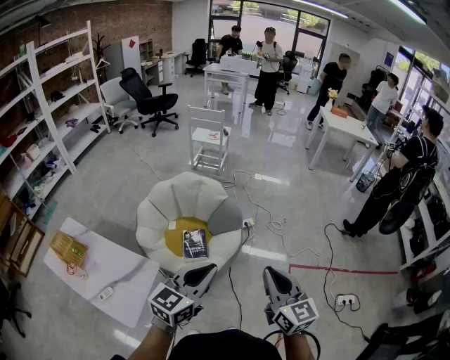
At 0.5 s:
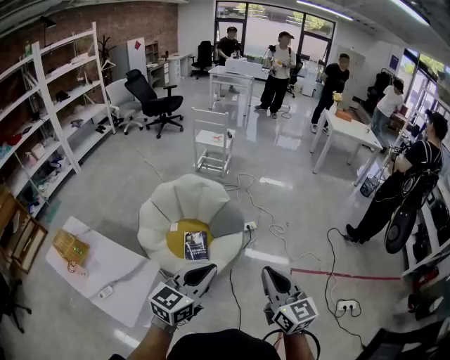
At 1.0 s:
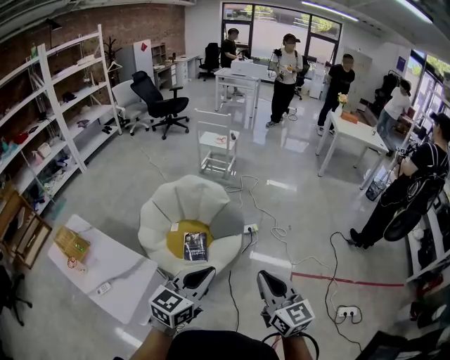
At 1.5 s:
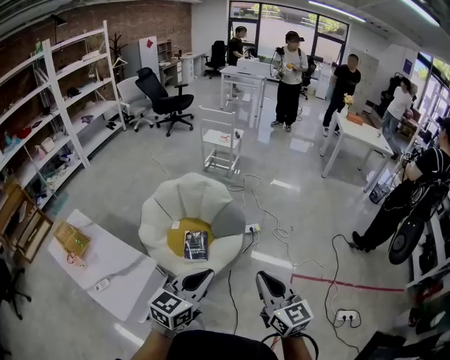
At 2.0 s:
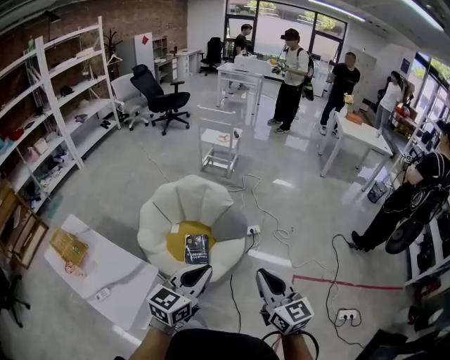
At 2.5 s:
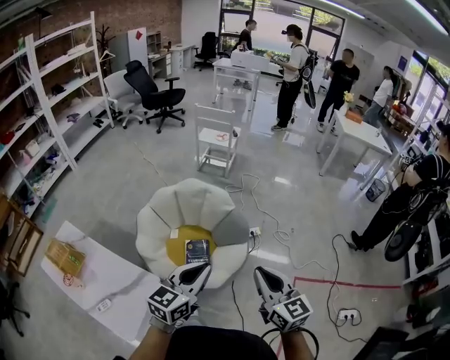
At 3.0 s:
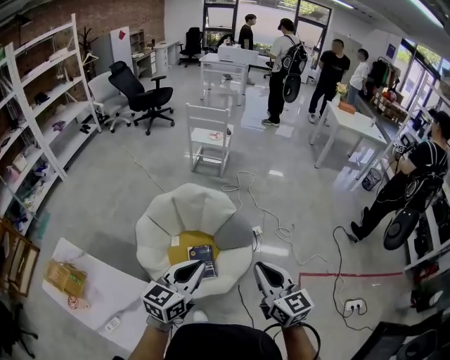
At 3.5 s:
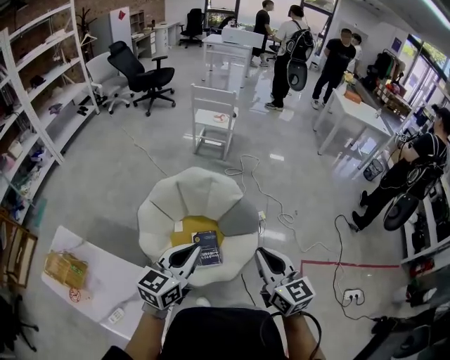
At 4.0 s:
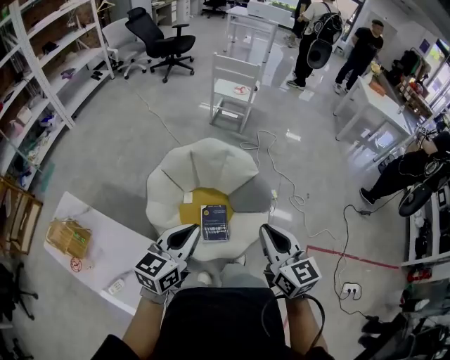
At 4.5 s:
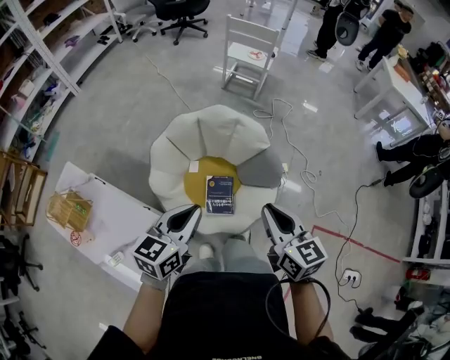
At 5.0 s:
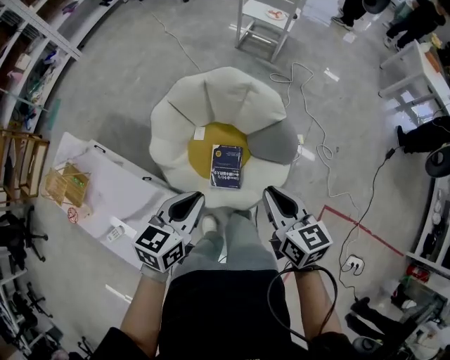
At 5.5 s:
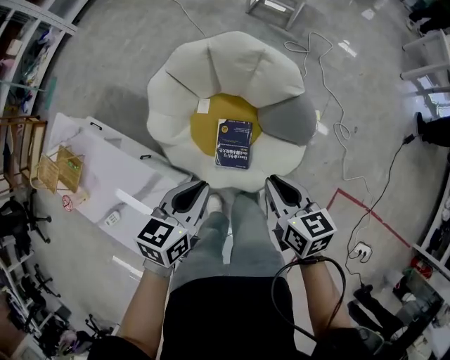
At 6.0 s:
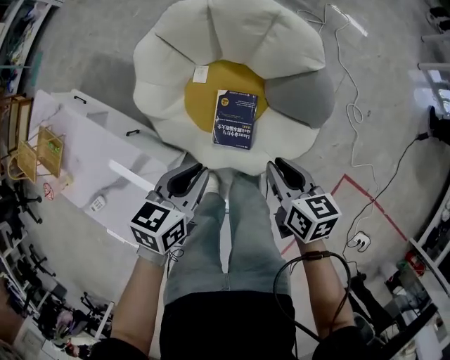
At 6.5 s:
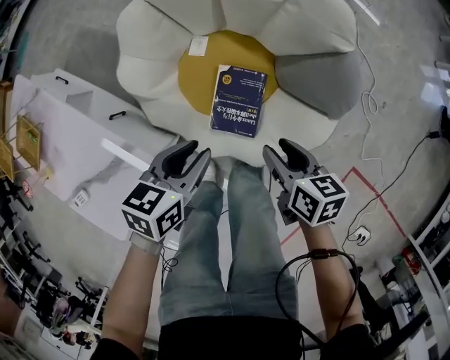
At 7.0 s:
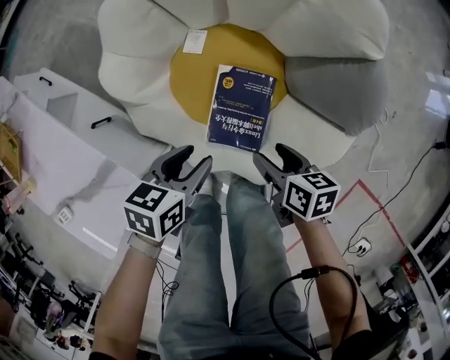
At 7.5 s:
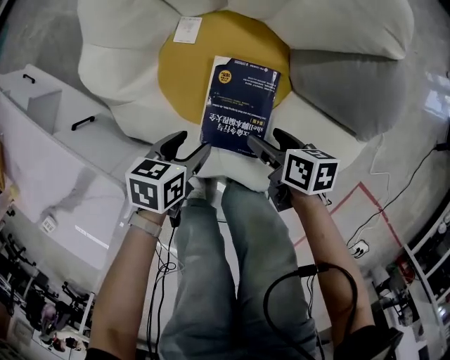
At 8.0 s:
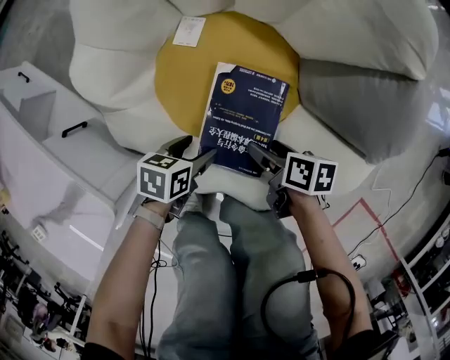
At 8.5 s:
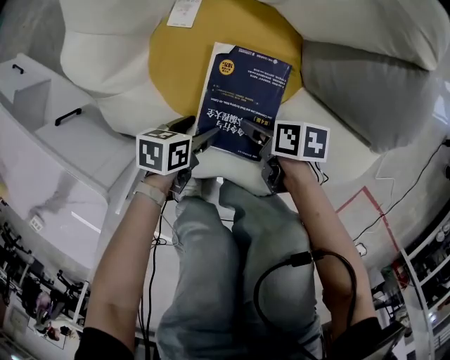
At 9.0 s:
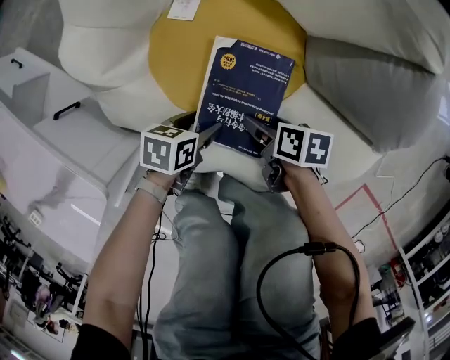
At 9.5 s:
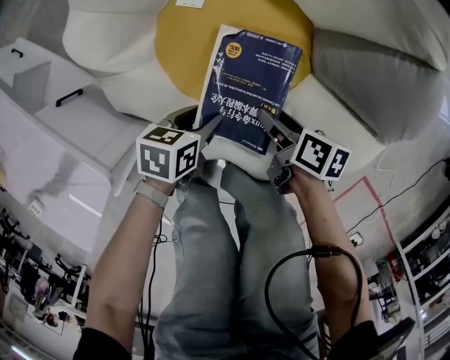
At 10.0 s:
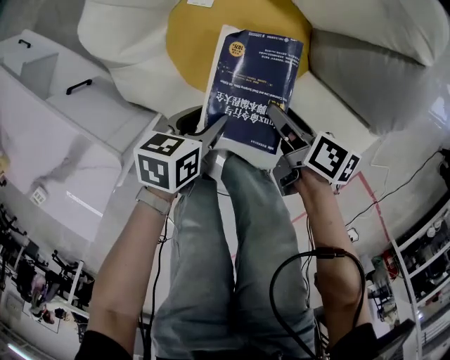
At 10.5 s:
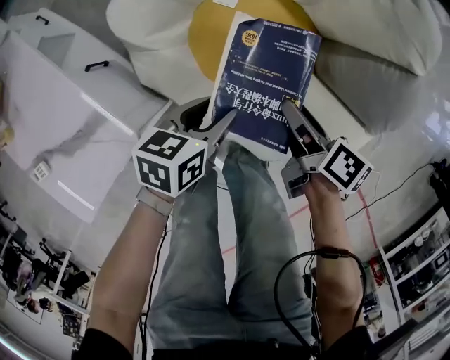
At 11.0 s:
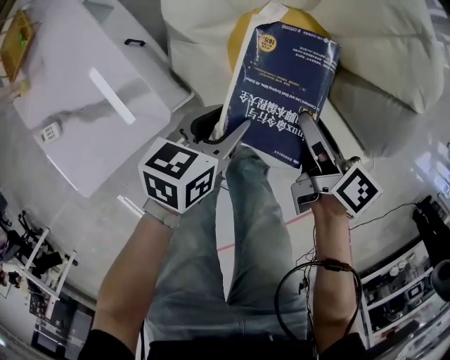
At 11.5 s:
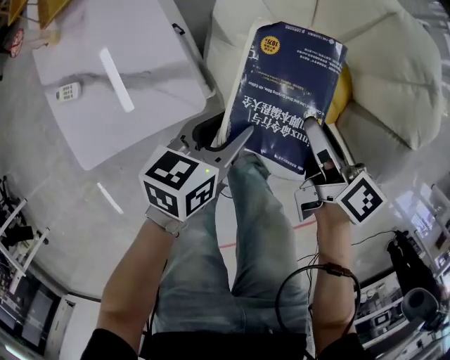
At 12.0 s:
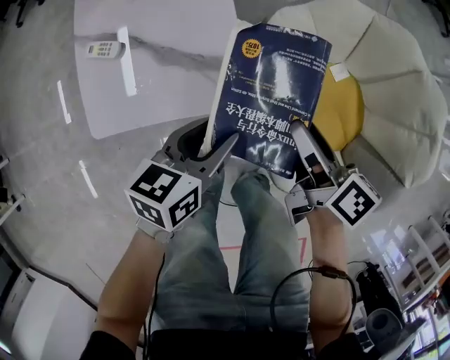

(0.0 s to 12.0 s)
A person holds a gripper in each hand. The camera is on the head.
0.0 s - 2.0 s: Both grippers travel together forward, roughly 5 cm.
2.0 s - 4.0 s: The two grippers go approximately 25 cm to the left and forward.
4.0 s - 6.0 s: The grippers both shift downward by approximately 35 cm. The left gripper swivels roughly 30 degrees. Meanwhile the right gripper turns by roughly 40 degrees.
6.0 s - 8.0 s: The two grippers go about 40 cm downward. The left gripper changes its angle by some 20 degrees, and opens, while the right gripper swivels roughly 30 degrees, and opens its fingers.
8.0 s - 10.0 s: Both grippers travel together upward, approximately 5 cm. The left gripper closes up.
10.0 s - 12.0 s: The right gripper ends up roughly 5 cm from where it was, and changes its angle by approximately 30 degrees. Meanwhile the left gripper swivels some 40 degrees.

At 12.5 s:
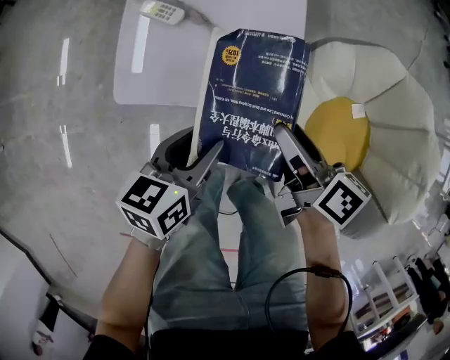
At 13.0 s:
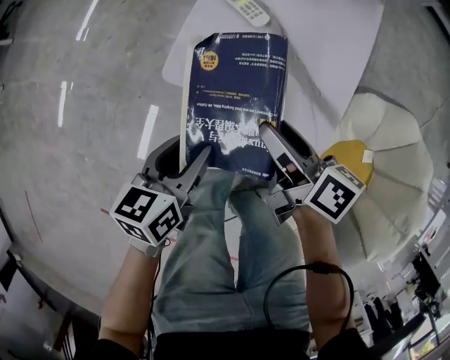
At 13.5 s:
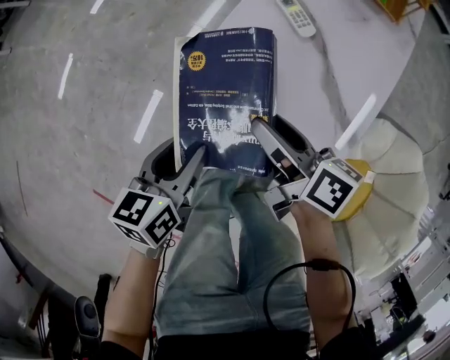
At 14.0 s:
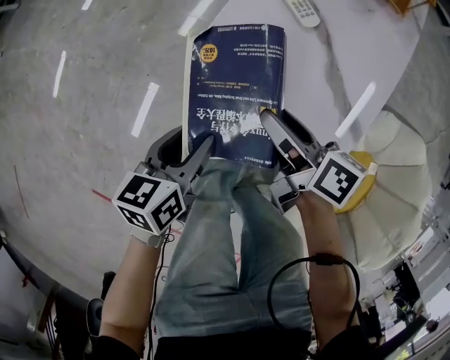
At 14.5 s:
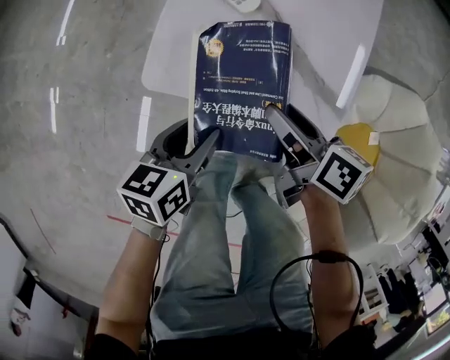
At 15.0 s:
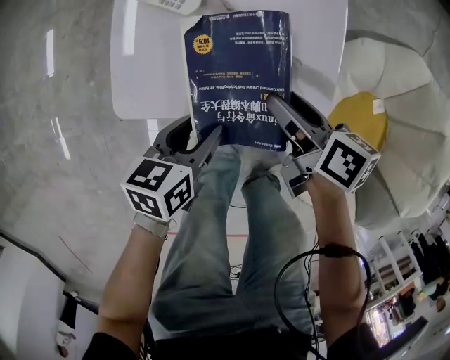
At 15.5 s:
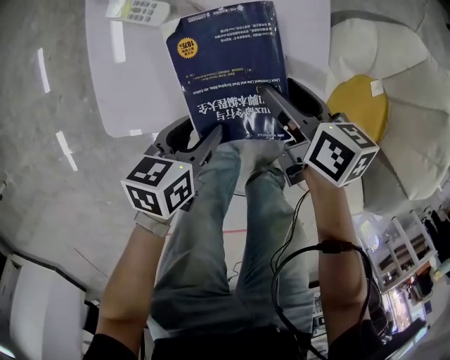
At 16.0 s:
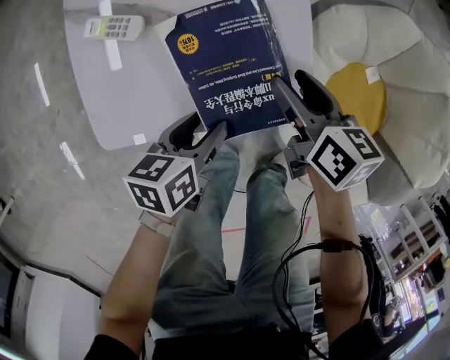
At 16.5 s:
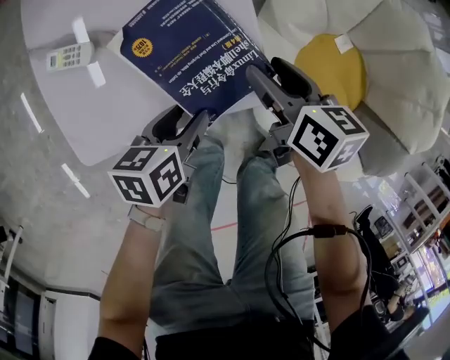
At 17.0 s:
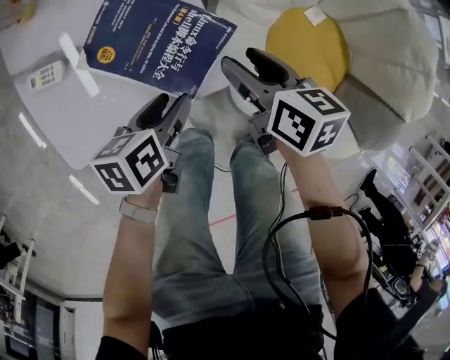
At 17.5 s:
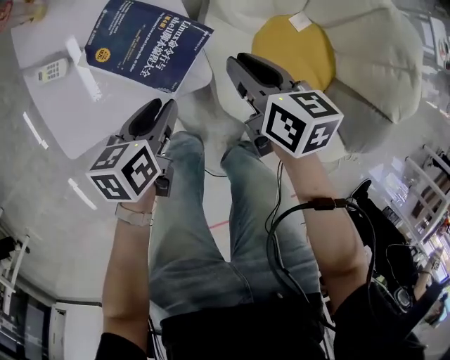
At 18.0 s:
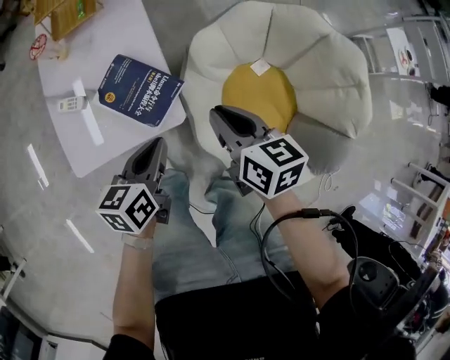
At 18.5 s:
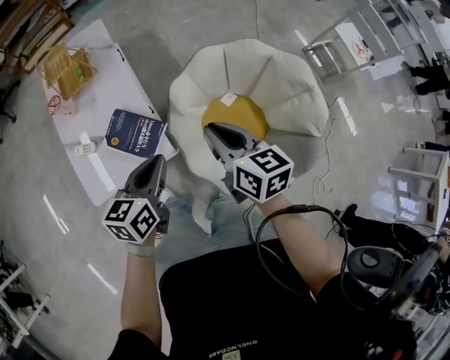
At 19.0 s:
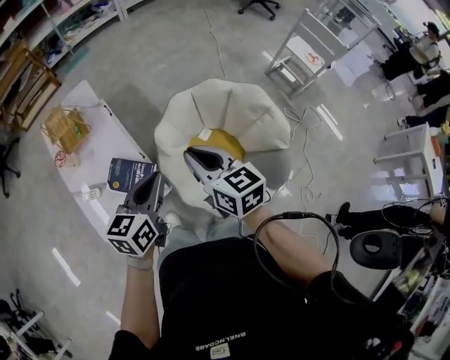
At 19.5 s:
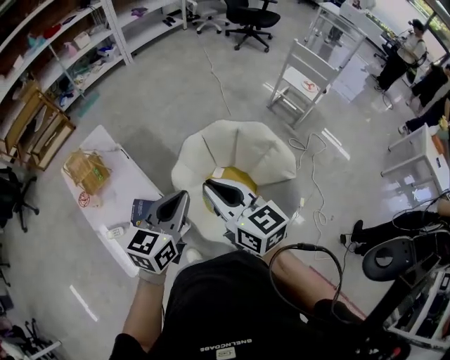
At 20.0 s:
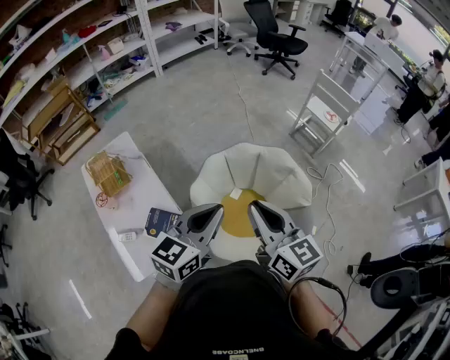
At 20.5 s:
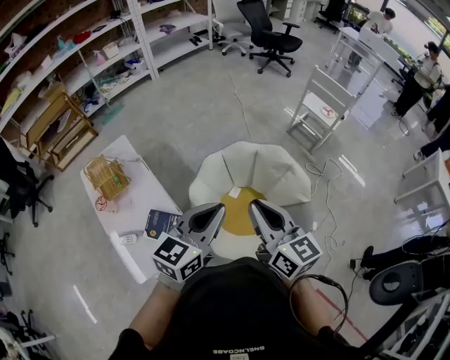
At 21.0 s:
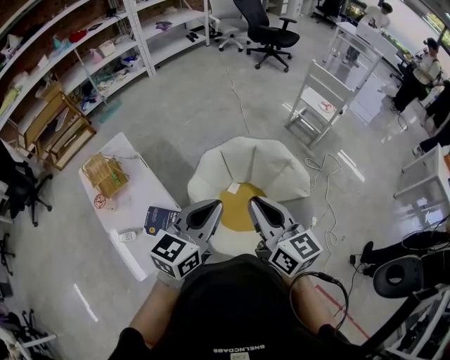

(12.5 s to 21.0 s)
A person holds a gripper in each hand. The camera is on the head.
12.5 s - 14.5 s: The grippers make only small movements.
14.5 s - 16.5 s: The right gripper ends up some 10 cm from where it was, and rotates roughly 30 degrees. Meanwhile the left gripper moves some 5 cm, and changes its angle by roughly 20 degrees.
16.5 s - 19.0 s: The grippers both shift upward by about 50 cm. The left gripper changes its angle by roughly 40 degrees, and closes up. The right gripper swivels some 30 degrees, and closes its fingers.
19.0 s - 21.0 s: The right gripper shifts some 15 cm upward, backward and to the right, and changes its angle by roughly 20 degrees. The left gripper moves upward, some 15 cm, and turns by some 30 degrees.

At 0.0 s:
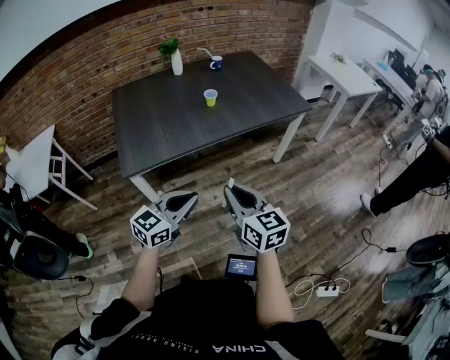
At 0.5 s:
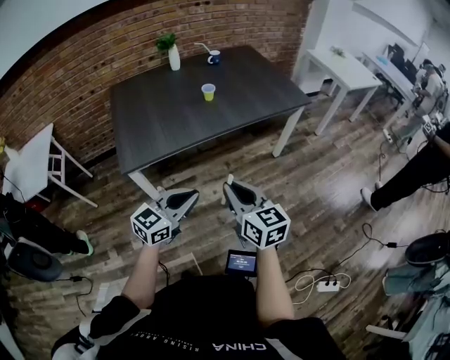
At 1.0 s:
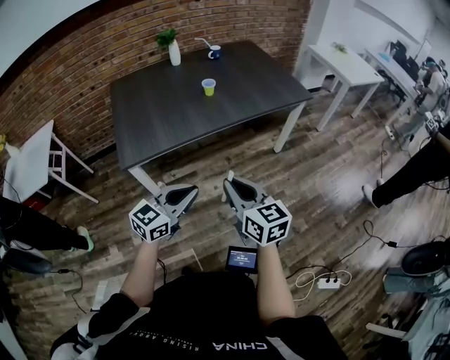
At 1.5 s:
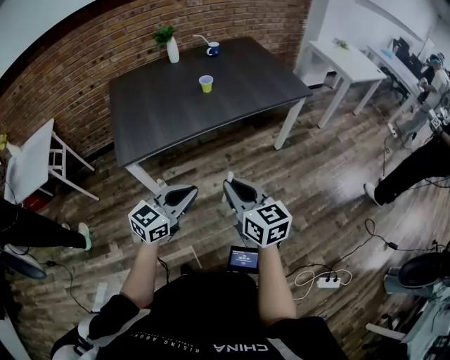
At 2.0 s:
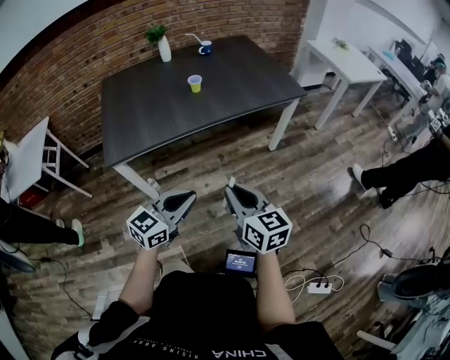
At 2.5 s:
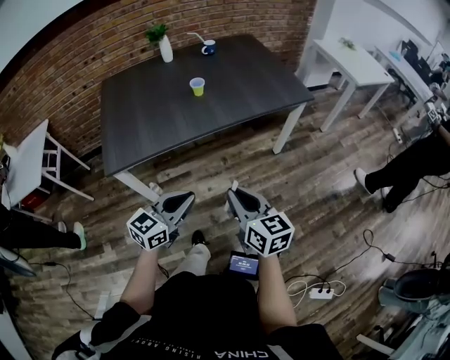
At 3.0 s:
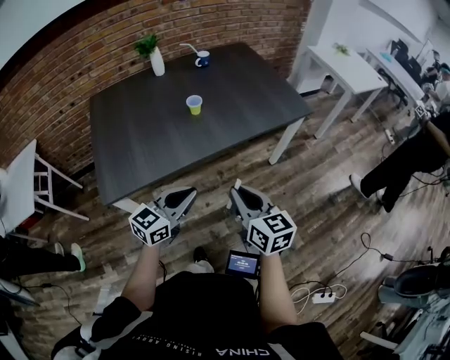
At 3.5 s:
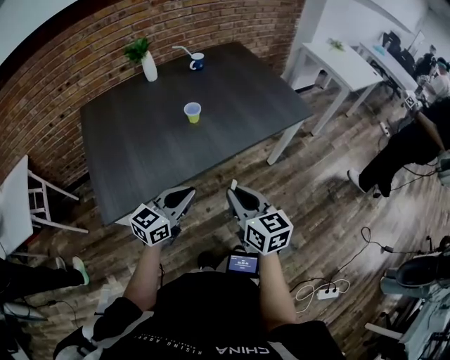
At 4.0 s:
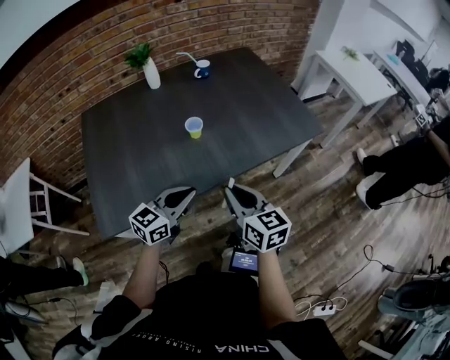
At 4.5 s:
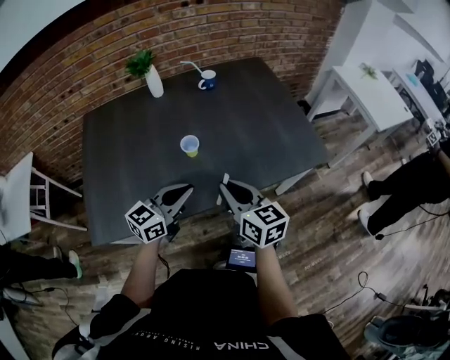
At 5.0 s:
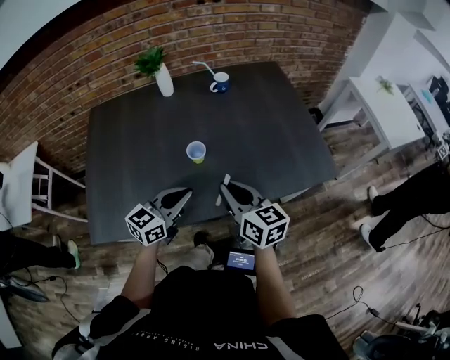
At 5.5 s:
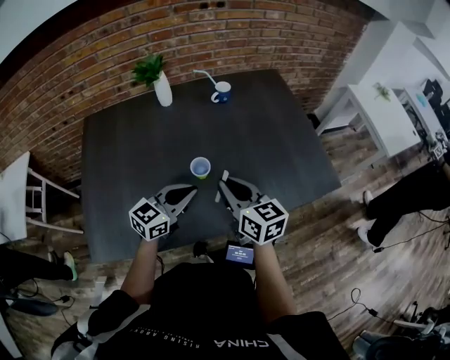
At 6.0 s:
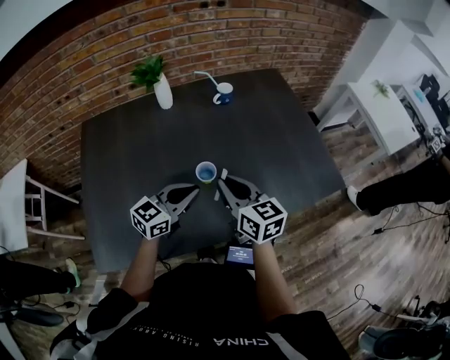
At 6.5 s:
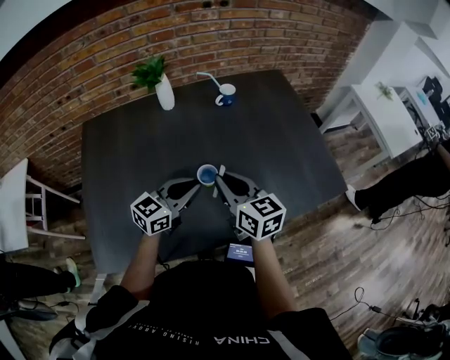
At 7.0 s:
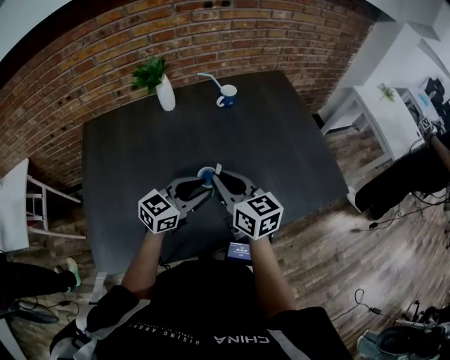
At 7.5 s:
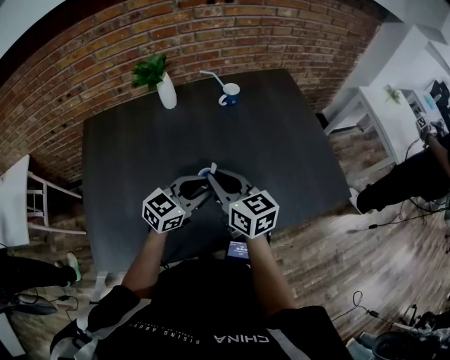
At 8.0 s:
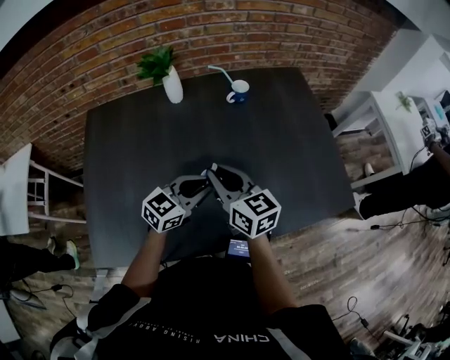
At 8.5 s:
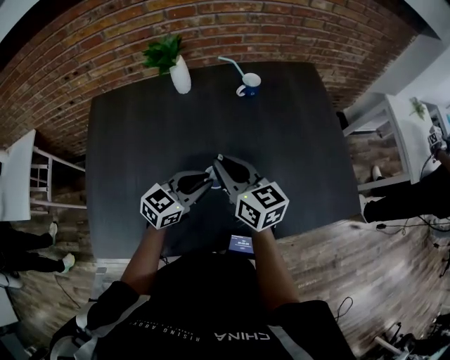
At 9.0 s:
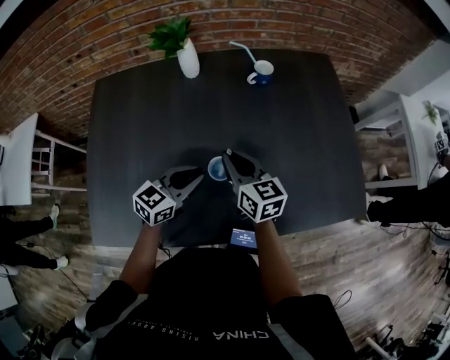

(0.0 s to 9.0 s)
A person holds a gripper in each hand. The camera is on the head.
0.0 s - 2.0 s: Both grippers travel together to the right, approximately 10 cm.
2.0 s - 4.5 s: Both grippers are carried forward, roughly 50 cm.
4.5 s - 7.0 s: The left gripper travels forward by some 15 cm, and opens up. The right gripper shifts roughly 20 cm forward and to the left.
7.0 s - 9.0 s: The left gripper goes roughly 10 cm downward and to the left; the right gripper heads forward and downward, covering approximately 10 cm.
